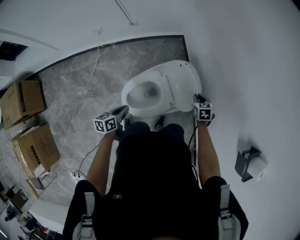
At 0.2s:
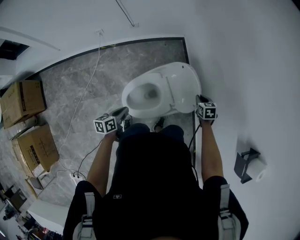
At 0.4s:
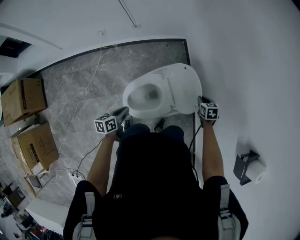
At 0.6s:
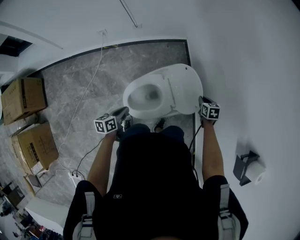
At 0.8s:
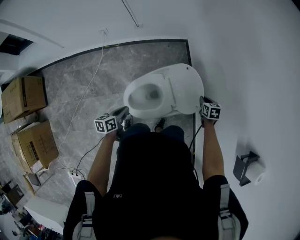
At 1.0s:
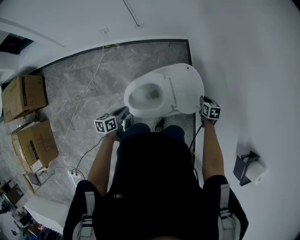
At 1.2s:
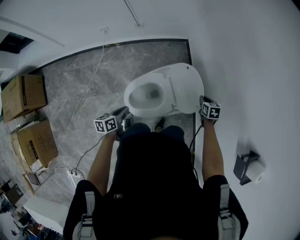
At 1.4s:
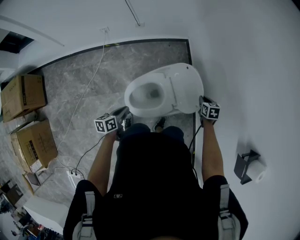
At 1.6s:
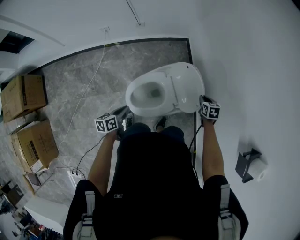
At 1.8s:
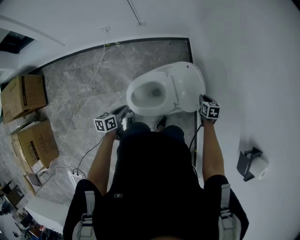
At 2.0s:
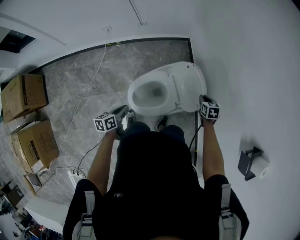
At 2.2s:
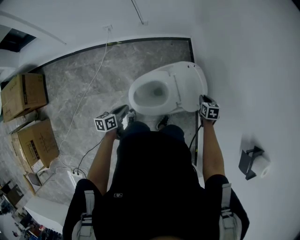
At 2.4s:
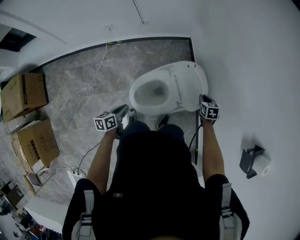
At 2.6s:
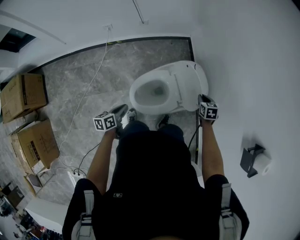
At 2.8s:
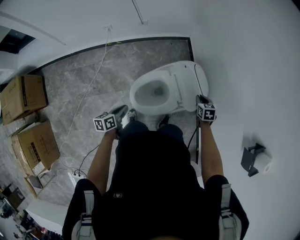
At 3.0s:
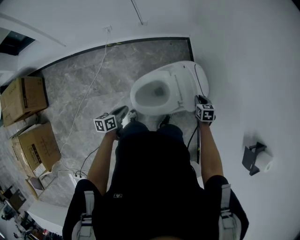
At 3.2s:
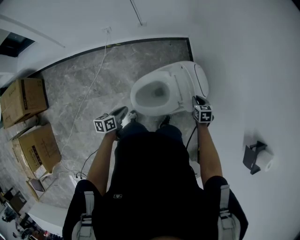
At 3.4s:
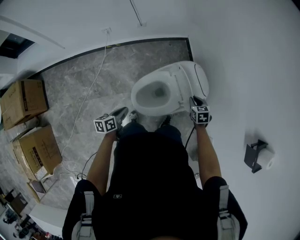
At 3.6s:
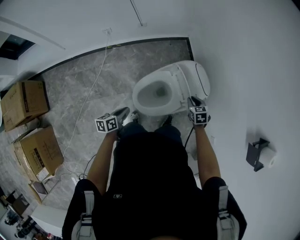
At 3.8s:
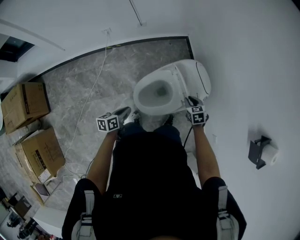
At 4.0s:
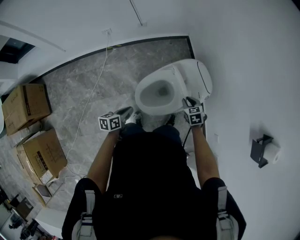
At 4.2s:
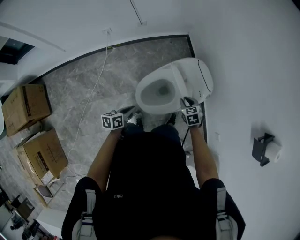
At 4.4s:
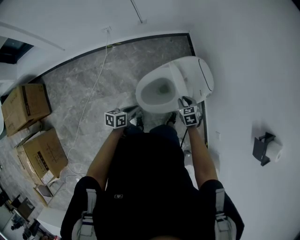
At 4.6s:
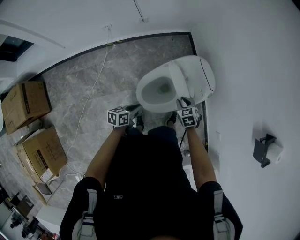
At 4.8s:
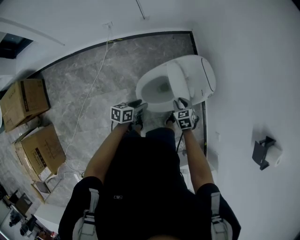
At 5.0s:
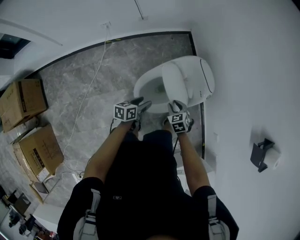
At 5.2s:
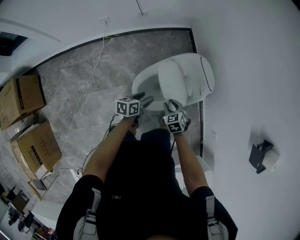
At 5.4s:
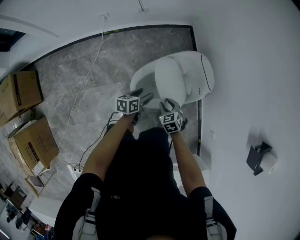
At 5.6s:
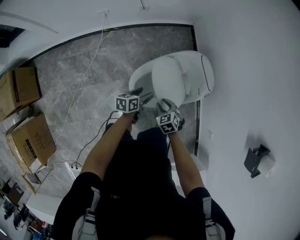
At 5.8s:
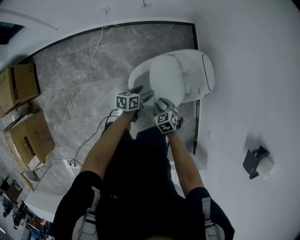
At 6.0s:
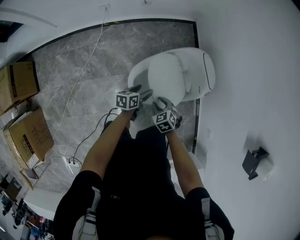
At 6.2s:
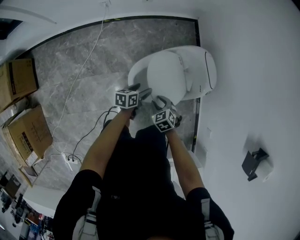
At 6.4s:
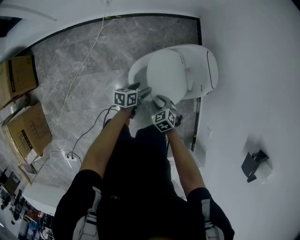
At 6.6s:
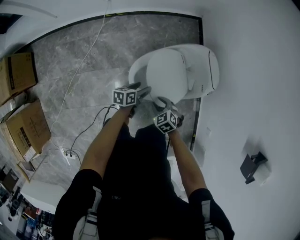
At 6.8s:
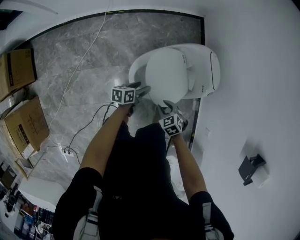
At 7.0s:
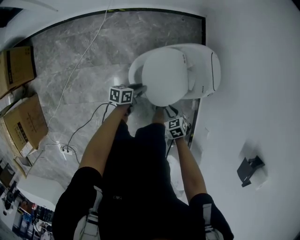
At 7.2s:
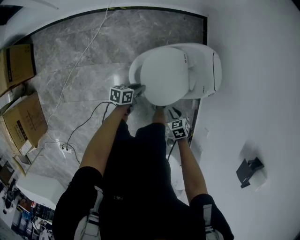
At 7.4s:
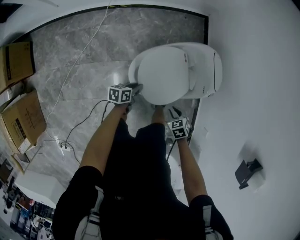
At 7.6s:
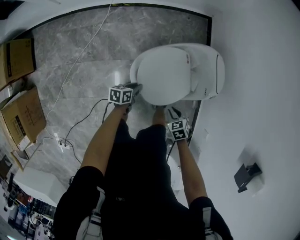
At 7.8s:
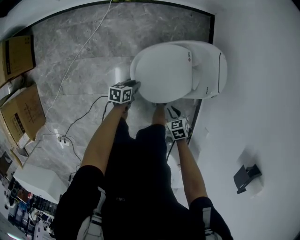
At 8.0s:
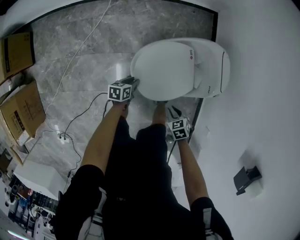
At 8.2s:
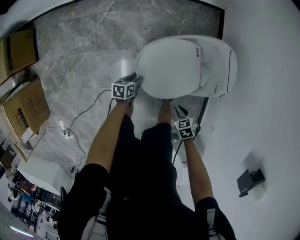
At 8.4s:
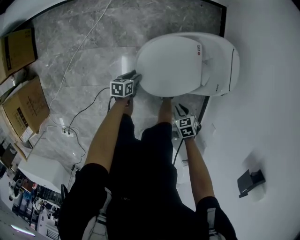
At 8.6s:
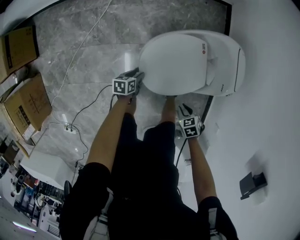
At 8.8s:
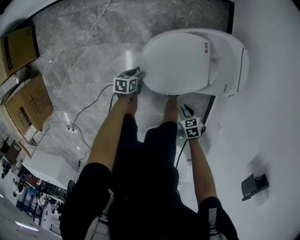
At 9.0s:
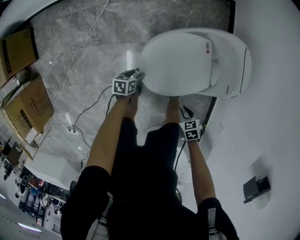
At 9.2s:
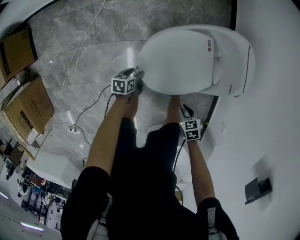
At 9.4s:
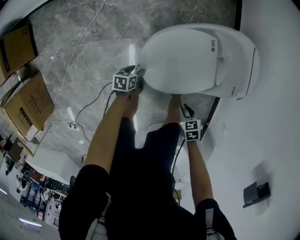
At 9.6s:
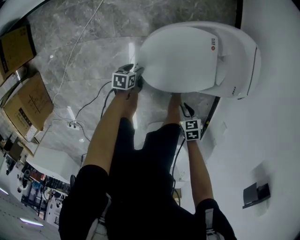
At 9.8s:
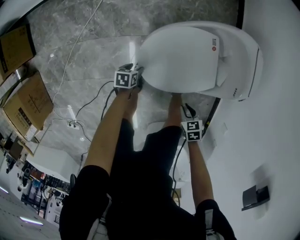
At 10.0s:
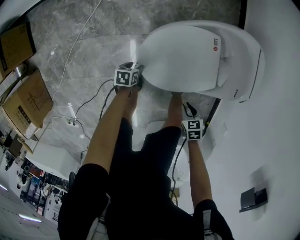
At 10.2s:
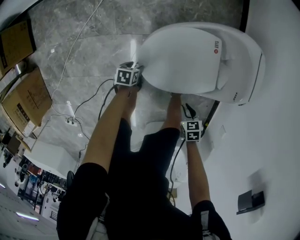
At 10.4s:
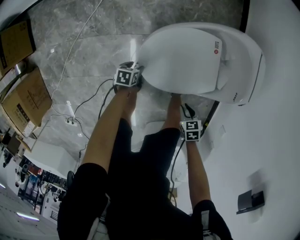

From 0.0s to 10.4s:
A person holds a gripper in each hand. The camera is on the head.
From 0.0s to 1.4s: There are only small adjustments of the grippers.
From 1.4s to 3.0s: The right gripper heads to the left and backward, covering some 10 cm, while the left gripper moves to the left, roughly 5 cm.
From 3.0s to 4.4s: The right gripper heads to the left and backward, covering about 15 cm.
From 4.4s to 6.0s: The left gripper moves forward, downward and to the right, approximately 15 cm, and opens. Meanwhile the right gripper goes some 15 cm to the left, backward and downward.
From 6.0s to 7.4s: The right gripper heads to the right and backward, covering some 10 cm; the left gripper heads downward, covering about 10 cm, and closes its fingers.
From 7.4s to 9.0s: The right gripper moves downward, some 10 cm. The left gripper heads downward, covering some 15 cm, and opens its fingers.
From 9.0s to 10.4s: The two grippers go about 5 cm downward.

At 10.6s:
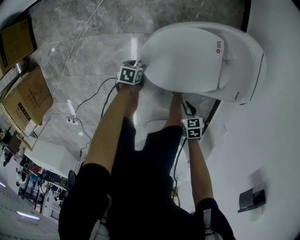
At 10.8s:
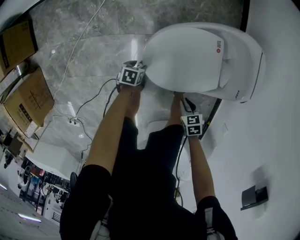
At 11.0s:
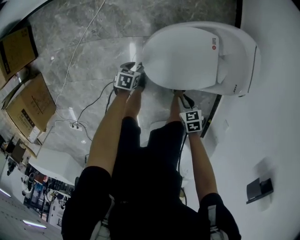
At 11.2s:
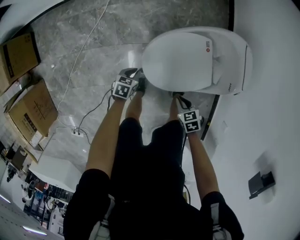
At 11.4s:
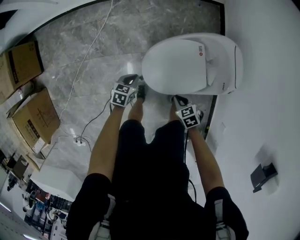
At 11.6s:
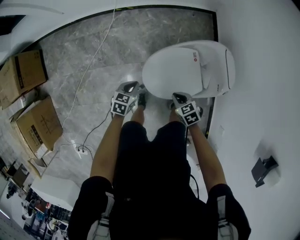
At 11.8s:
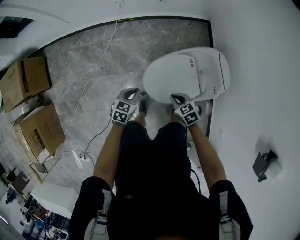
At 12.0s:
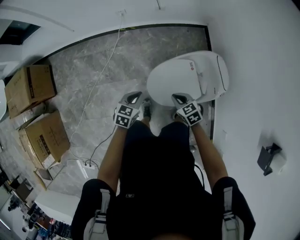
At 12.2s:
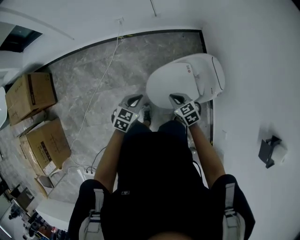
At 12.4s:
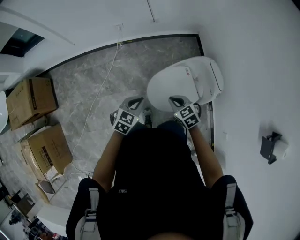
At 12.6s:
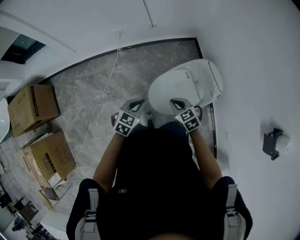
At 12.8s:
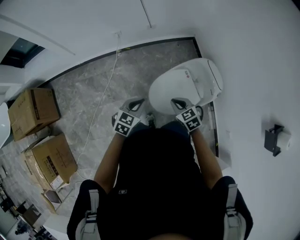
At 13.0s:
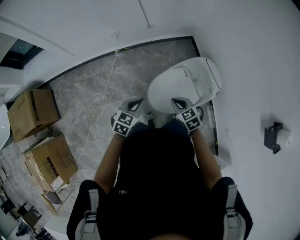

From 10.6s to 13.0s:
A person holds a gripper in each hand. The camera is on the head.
From 10.6s to 11.8s: Both grippers travel together upward, some 30 cm. The left gripper rotates some 40 degrees, and closes its fingers. The right gripper turns by roughly 20 degrees.
From 11.8s to 13.0s: Both grippers move upward, about 15 cm.

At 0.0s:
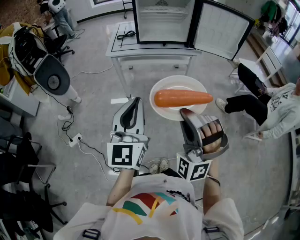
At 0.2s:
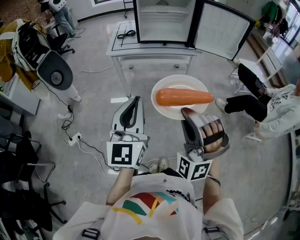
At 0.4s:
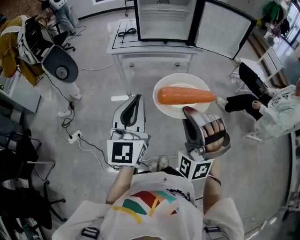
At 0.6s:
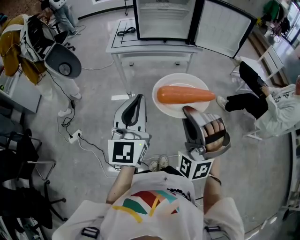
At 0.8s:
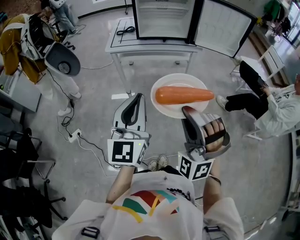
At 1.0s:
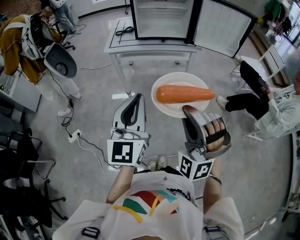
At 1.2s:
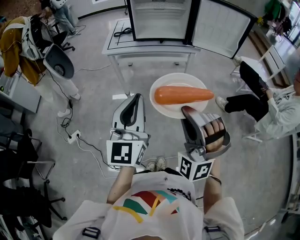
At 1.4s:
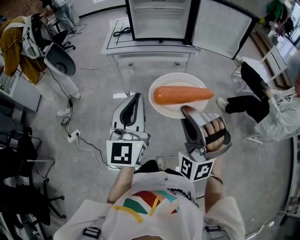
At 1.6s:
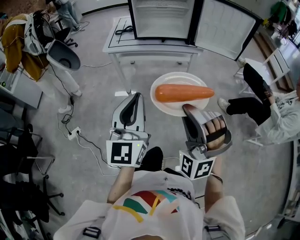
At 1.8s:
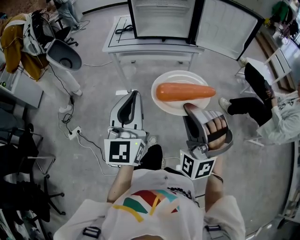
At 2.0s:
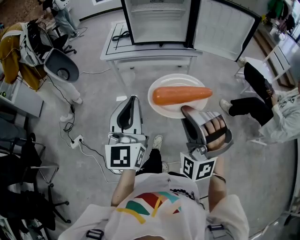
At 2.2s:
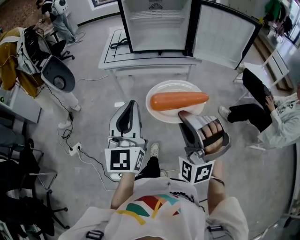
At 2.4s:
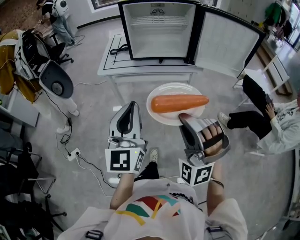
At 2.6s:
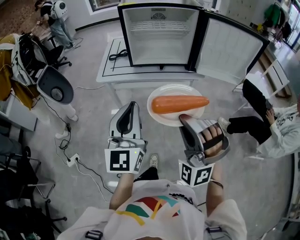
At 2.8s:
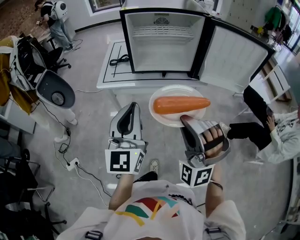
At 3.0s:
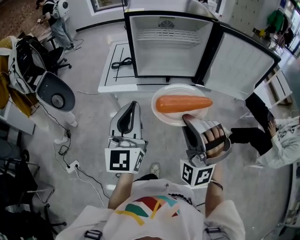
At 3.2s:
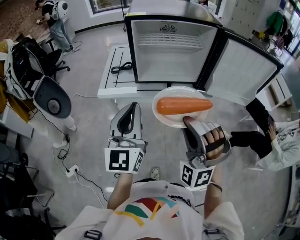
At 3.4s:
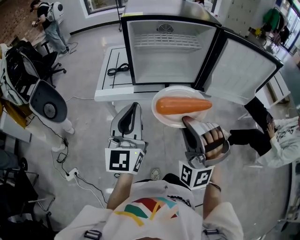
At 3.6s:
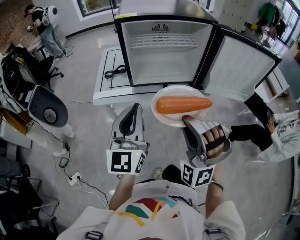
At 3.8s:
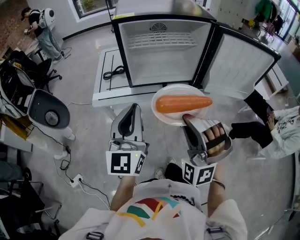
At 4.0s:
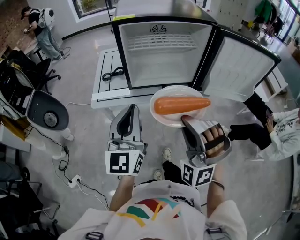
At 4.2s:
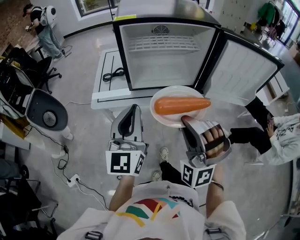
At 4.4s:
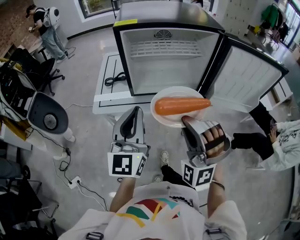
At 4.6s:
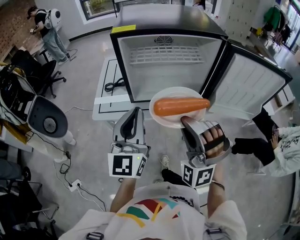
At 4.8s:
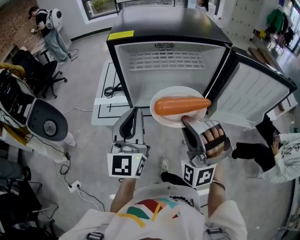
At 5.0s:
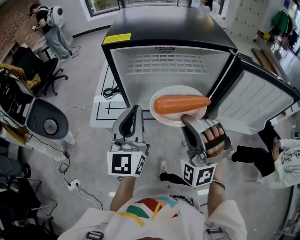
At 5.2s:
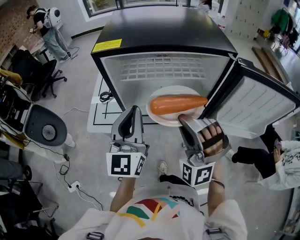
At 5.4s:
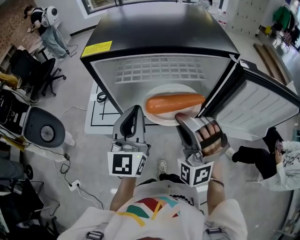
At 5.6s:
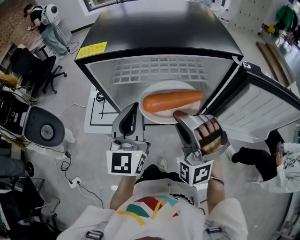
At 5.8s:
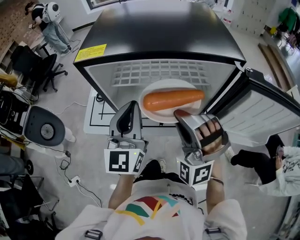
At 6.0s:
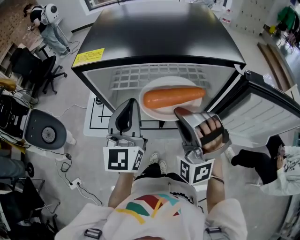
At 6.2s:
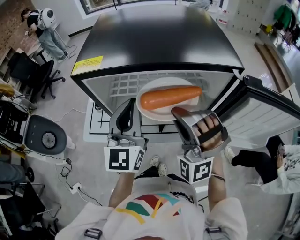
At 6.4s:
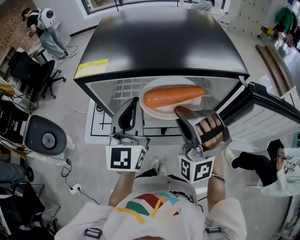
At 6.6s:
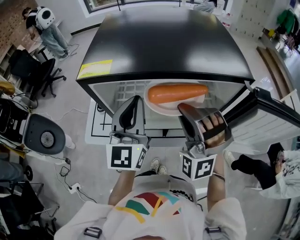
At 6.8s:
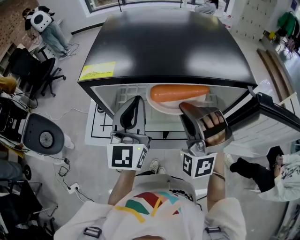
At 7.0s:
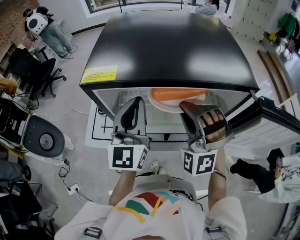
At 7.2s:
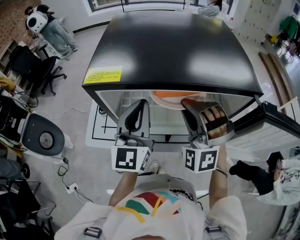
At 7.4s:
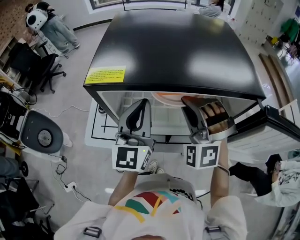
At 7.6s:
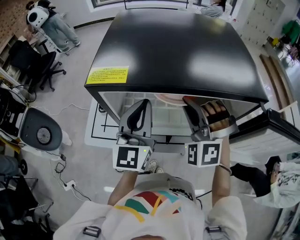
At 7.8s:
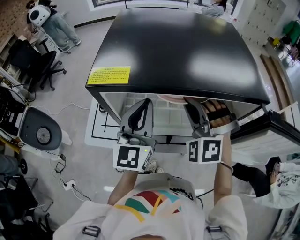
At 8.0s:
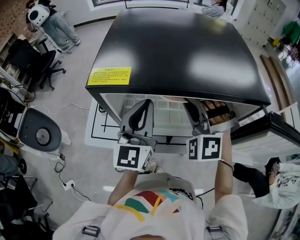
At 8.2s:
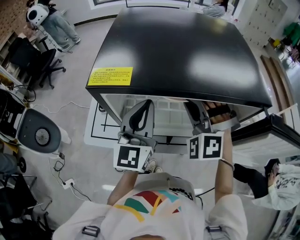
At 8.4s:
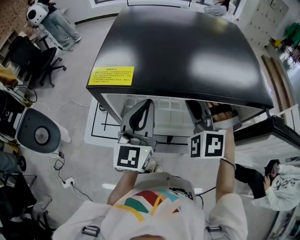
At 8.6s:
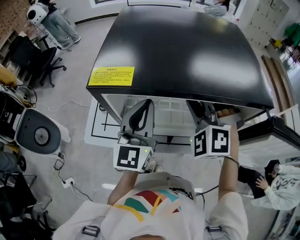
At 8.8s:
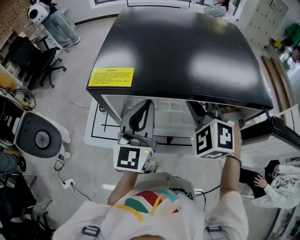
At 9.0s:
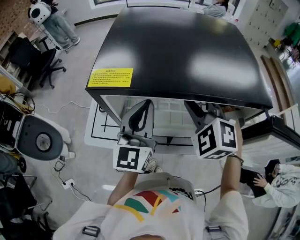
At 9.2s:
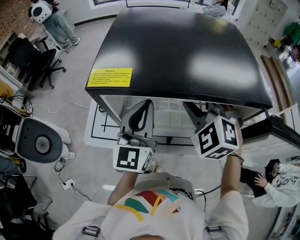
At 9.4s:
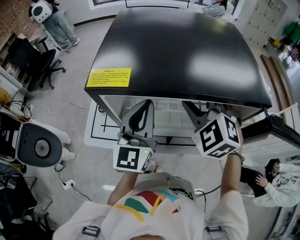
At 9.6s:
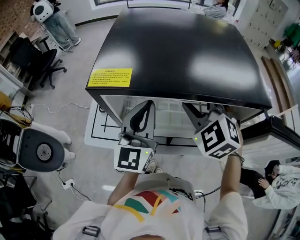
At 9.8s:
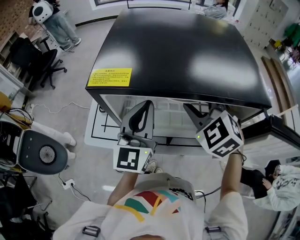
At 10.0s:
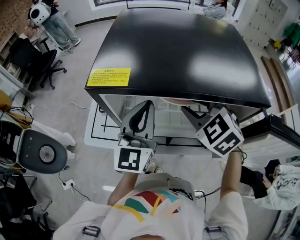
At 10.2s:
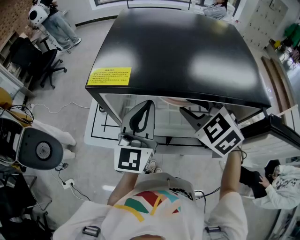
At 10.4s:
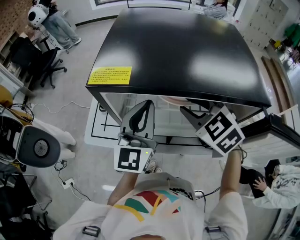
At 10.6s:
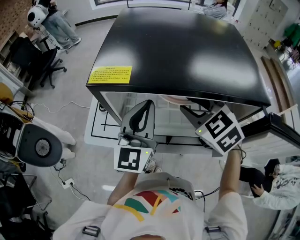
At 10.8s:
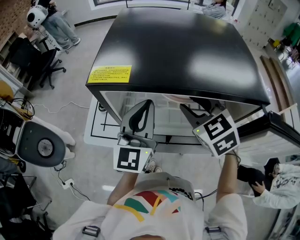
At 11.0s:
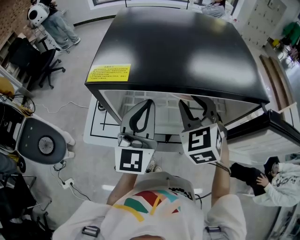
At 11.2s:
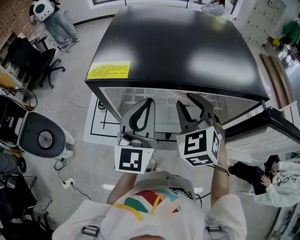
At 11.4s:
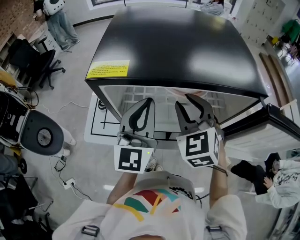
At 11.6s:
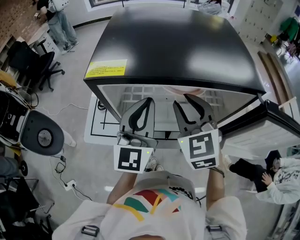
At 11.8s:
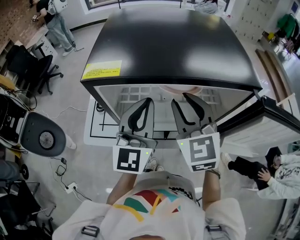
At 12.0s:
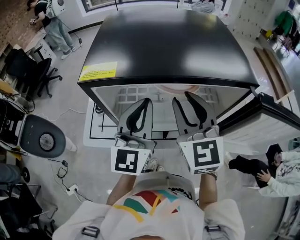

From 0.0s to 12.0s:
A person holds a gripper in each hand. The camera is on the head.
From 0.0s to 1.6s: The two grippers go some 5 cm to the right.
From 1.6s to 3.0s: Both grippers move forward, approximately 25 cm.
From 3.0s to 4.4s: The grippers both shift forward by approximately 15 cm.
From 4.4s to 6.0s: The two grippers go about 20 cm forward.
From 6.0s to 7.6s: The right gripper moves forward, some 10 cm, while the left gripper travels forward by some 5 cm.
From 7.6s to 9.0s: The right gripper turns by some 20 degrees.
From 9.0s to 10.4s: The right gripper rotates approximately 30 degrees.
From 10.4s to 12.0s: The right gripper is displaced upward by some 5 cm, and points its fingers approximately 40 degrees further upward.
